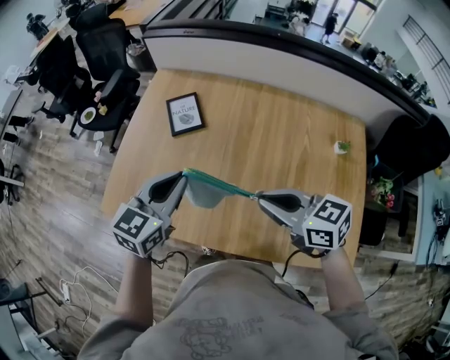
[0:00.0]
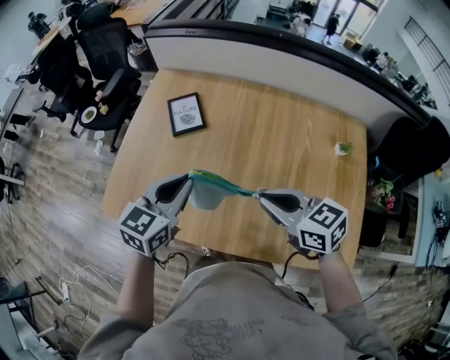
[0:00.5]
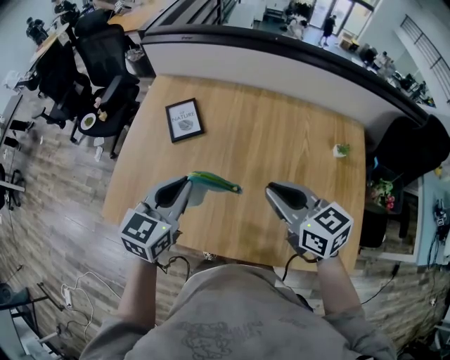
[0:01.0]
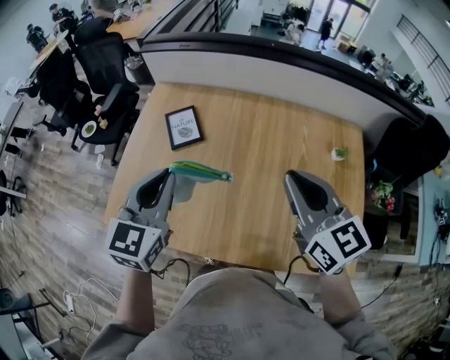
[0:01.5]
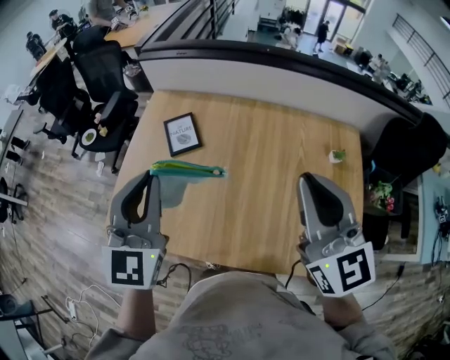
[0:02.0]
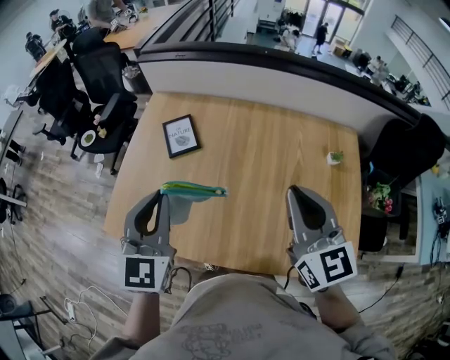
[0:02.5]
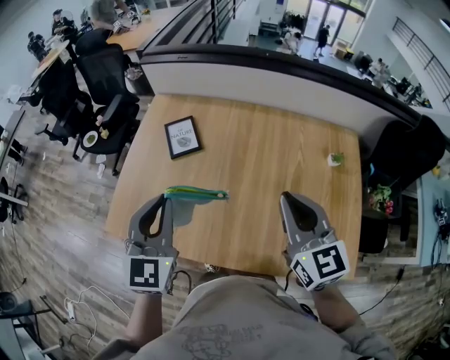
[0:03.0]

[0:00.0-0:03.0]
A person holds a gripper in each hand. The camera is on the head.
0:00.0 to 0:01.5: The right gripper goes approximately 15 cm upward and to the right, and turns by about 40 degrees; the left gripper is displaced upward by about 5 cm.
0:01.5 to 0:03.0: The right gripper reaches roughly 5 cm upward, then returns.

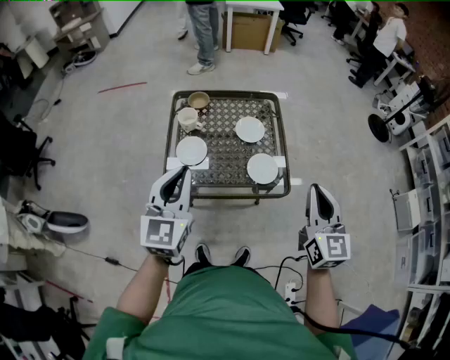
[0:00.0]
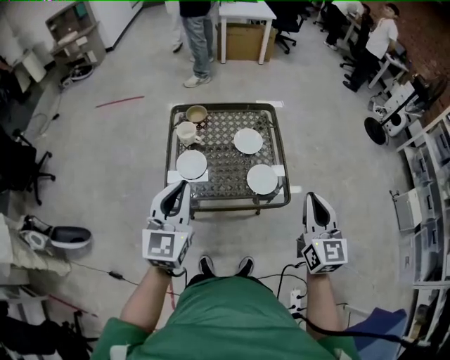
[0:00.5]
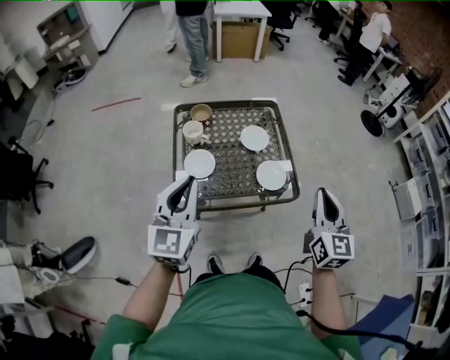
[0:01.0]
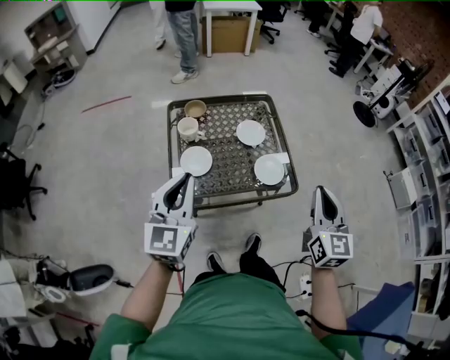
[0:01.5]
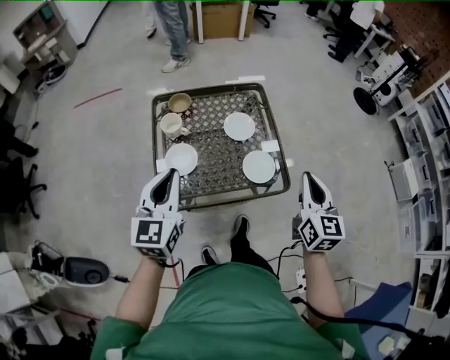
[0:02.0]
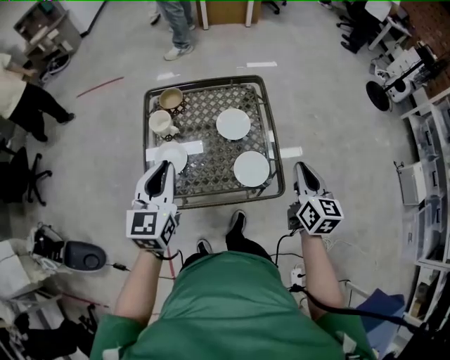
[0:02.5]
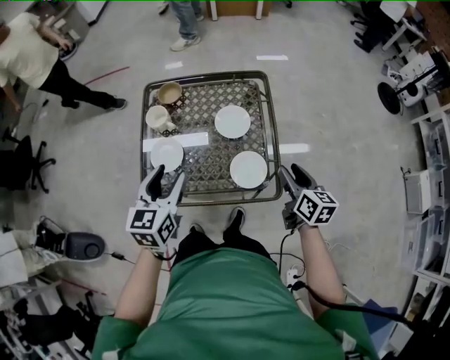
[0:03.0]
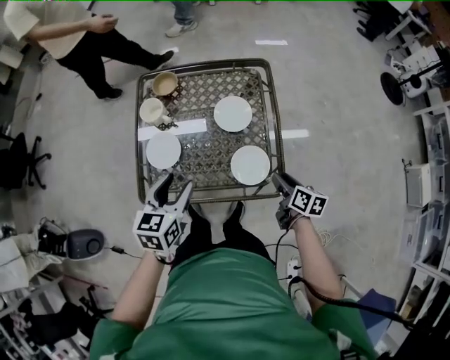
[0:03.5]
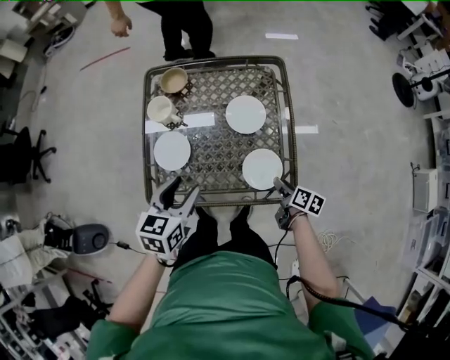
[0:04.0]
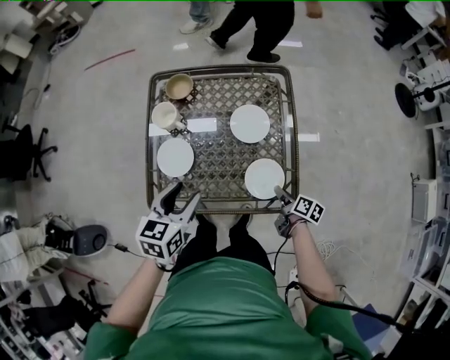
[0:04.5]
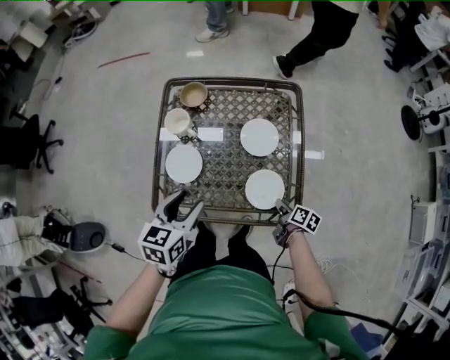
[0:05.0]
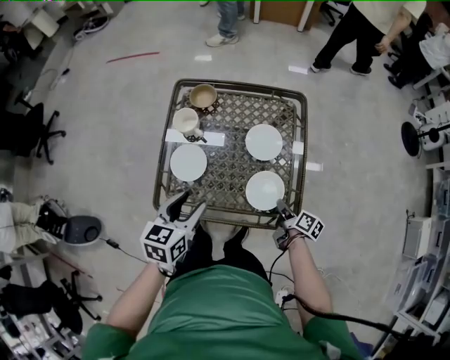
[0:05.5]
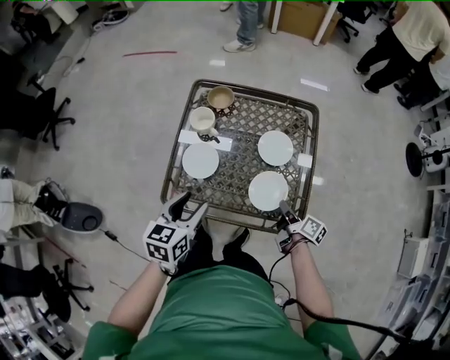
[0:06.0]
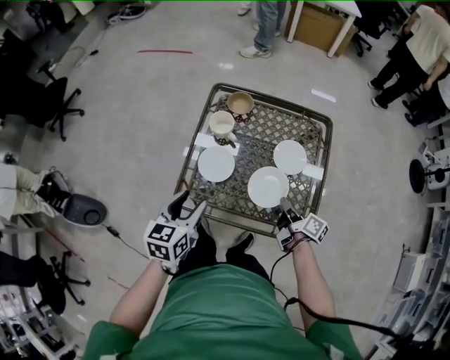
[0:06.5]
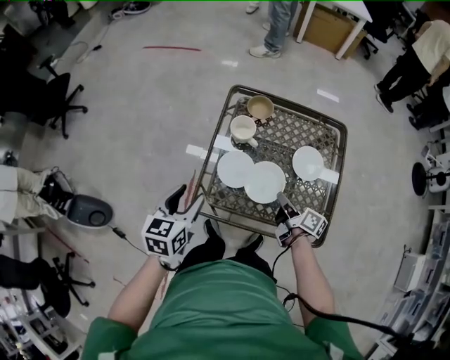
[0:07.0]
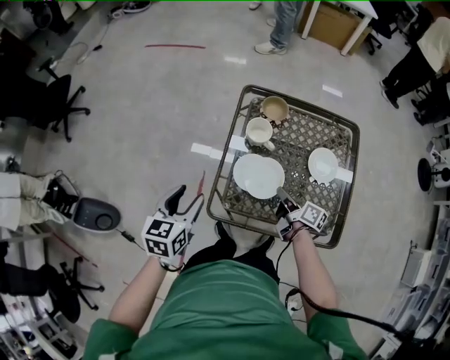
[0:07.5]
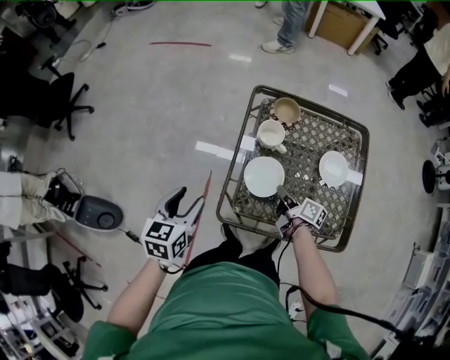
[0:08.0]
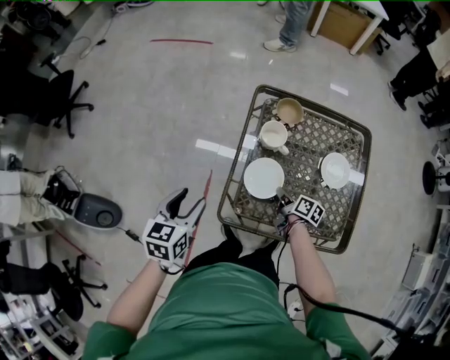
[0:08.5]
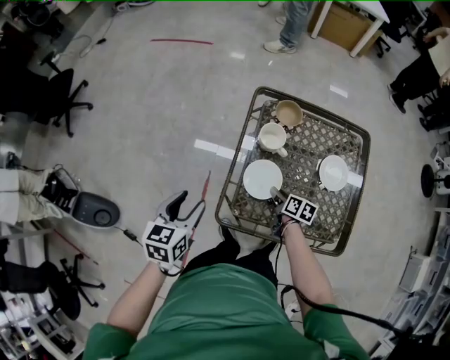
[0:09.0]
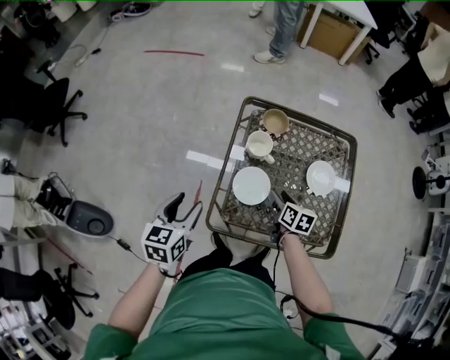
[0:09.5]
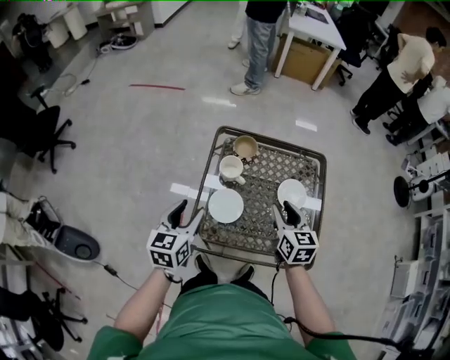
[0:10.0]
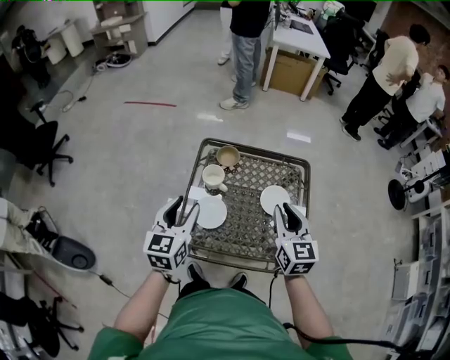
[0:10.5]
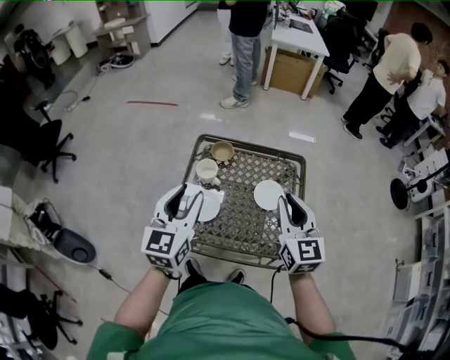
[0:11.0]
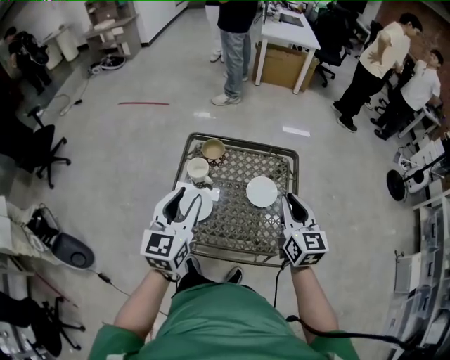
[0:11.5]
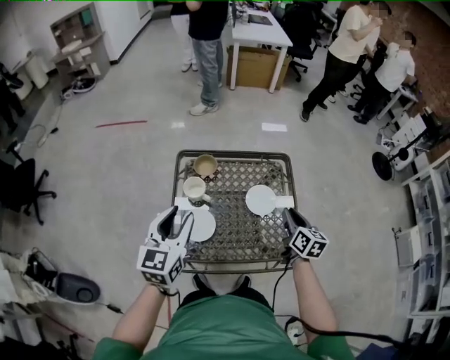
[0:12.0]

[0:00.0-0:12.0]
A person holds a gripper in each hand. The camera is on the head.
0:00.0 to 0:02.0: The right gripper shifts approximately 10 cm forward and downward. Meanwhile the left gripper moves forward, approximately 5 cm.
0:02.0 to 0:04.0: The left gripper shifts about 20 cm downward, to the right and forward, changes its angle by about 30 degrees, and opens up. The right gripper travels downward by about 35 cm, changes its angle by roughly 60 degrees, and opens.
0:04.0 to 0:06.0: The right gripper goes some 10 cm upward and to the left, and closes. The left gripper moves to the left, roughly 5 cm.
0:06.0 to 0:08.0: The left gripper heads to the left, covering about 25 cm; the right gripper travels to the left and forward by about 30 cm.
0:08.0 to 0:10.0: The left gripper heads to the right and upward, covering about 10 cm; the right gripper goes some 25 cm upward and to the right, rotates around the line of its fingers by roughly 60 degrees, counterclockwise from behind, and opens its fingers.
0:10.0 to 0:12.0: The left gripper travels upward and to the right by approximately 15 cm. Meanwhile the right gripper shifts approximately 20 cm to the right, and turns by approximately 30 degrees.

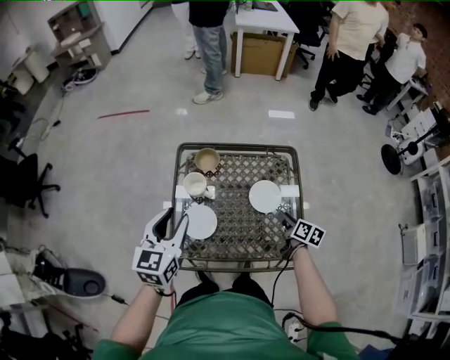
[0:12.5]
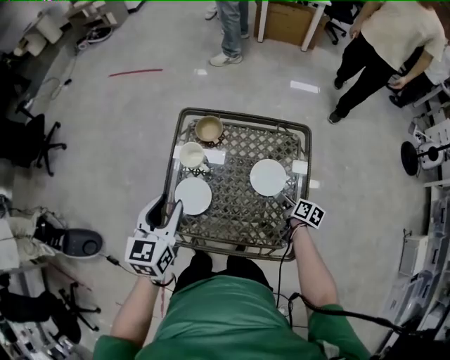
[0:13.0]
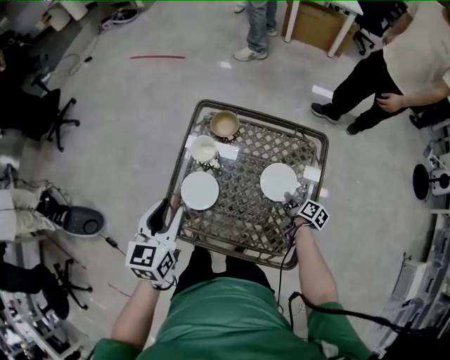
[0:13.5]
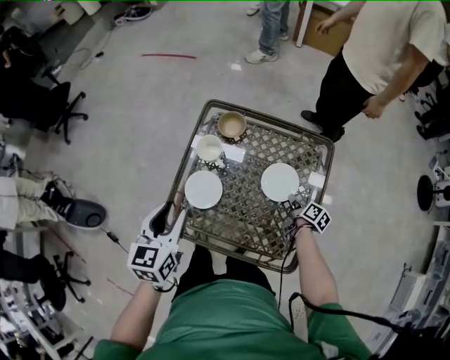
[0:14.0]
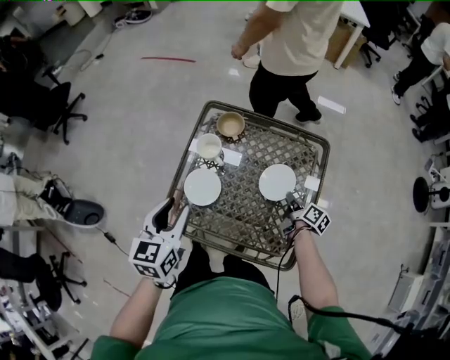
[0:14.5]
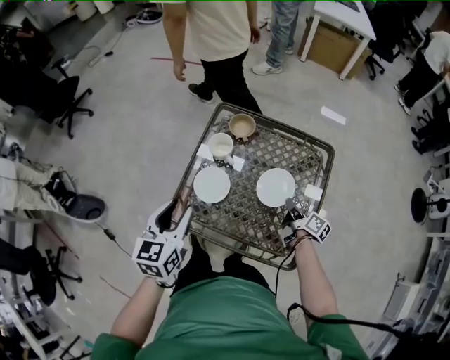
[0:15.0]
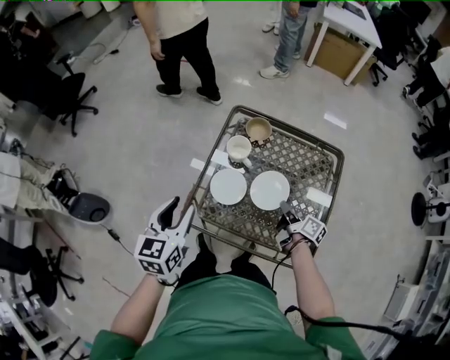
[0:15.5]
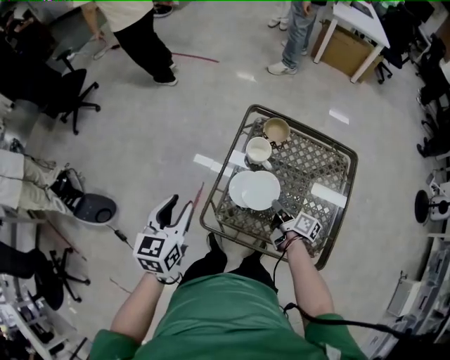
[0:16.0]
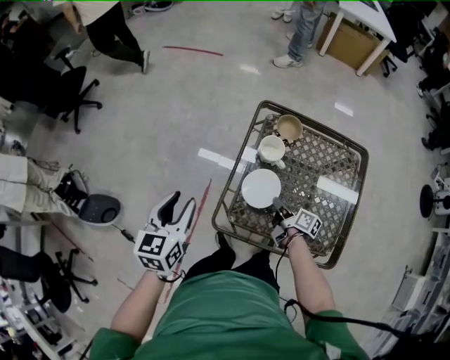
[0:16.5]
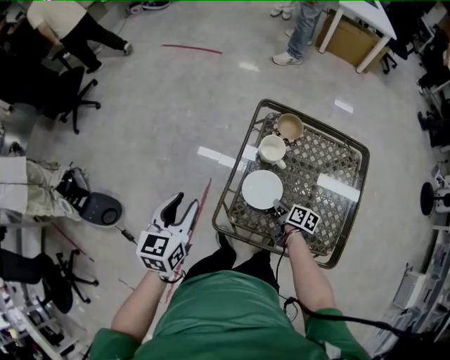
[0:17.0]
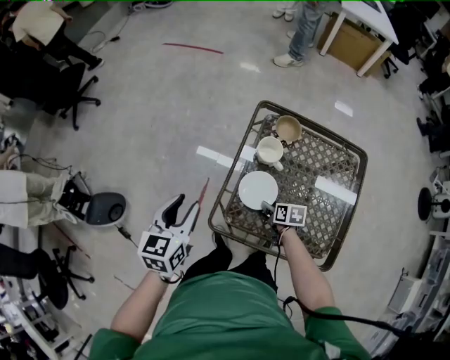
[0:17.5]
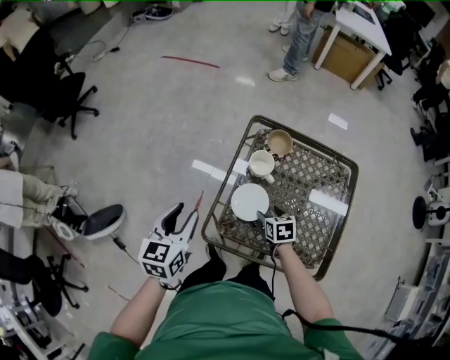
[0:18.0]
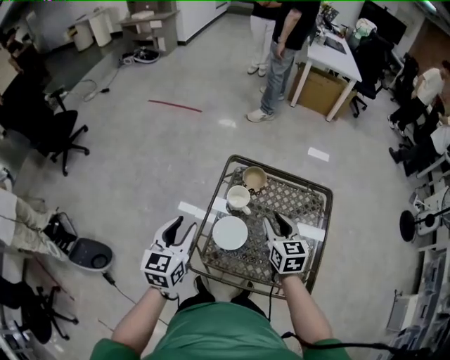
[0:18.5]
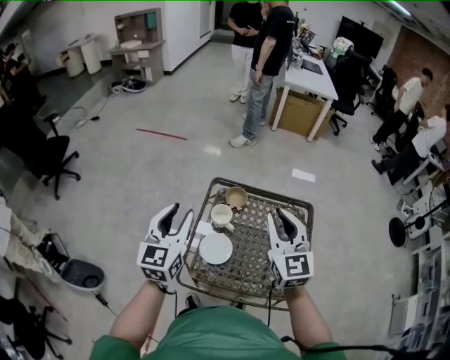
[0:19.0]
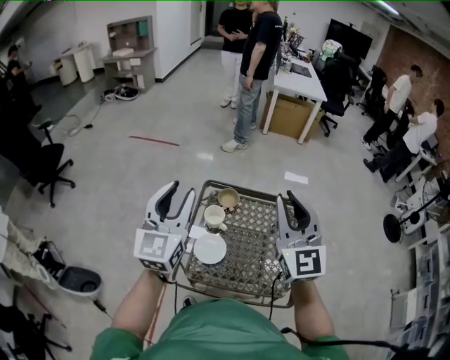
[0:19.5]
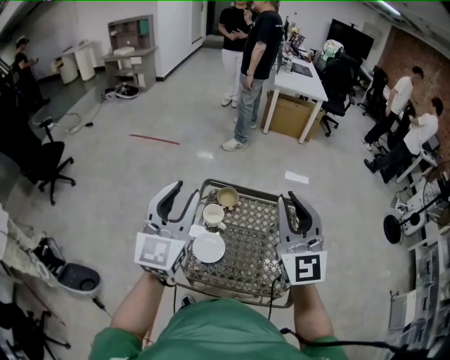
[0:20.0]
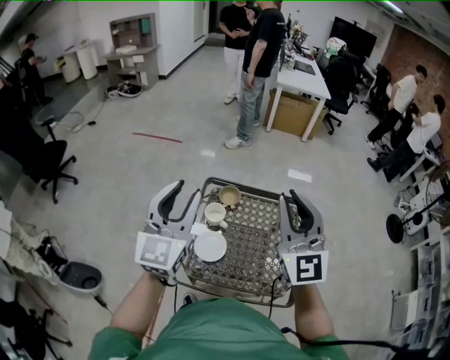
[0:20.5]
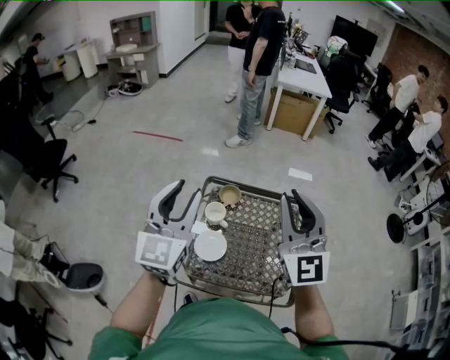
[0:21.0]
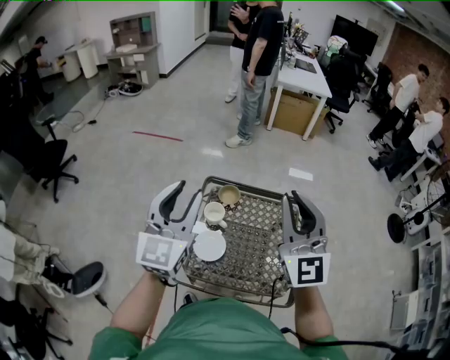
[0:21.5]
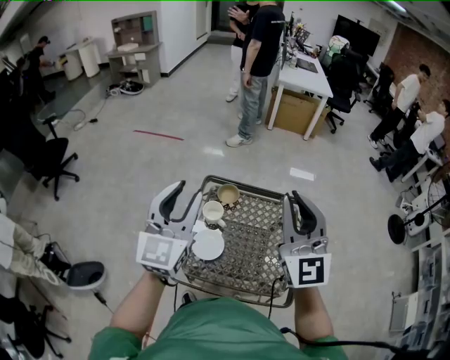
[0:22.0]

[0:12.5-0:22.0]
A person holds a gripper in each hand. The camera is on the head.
0:12.5 to 0:14.5: The right gripper moves downward and forward, some 10 cm, and closes. The left gripper moves backward, about 5 cm, and rotates some 20 degrees.
0:14.5 to 0:16.5: Both grippers travel together to the left, approximately 25 cm.
0:16.5 to 0:18.0: The right gripper twists some 50 degrees counterclockwise, seen from behind, and opens its fingers.
0:18.0 to 0:20.0: The left gripper is displaced upward and to the right by about 35 cm, and points its fingers some 40 degrees further upward, while the right gripper heads upward, covering about 50 cm, angles its fingers upward, by about 70 degrees, and closes its fingers.
0:20.0 to 0:22.0: There are only small adjustments of the grippers.

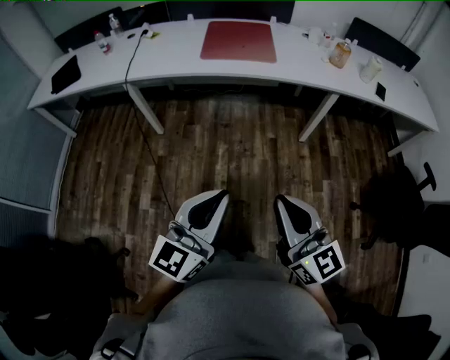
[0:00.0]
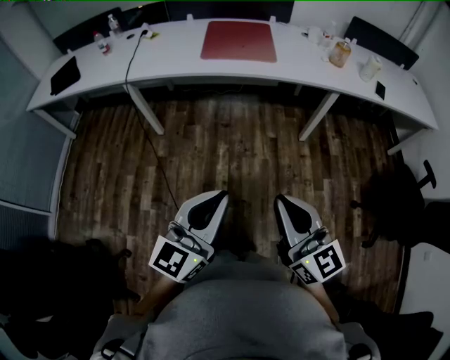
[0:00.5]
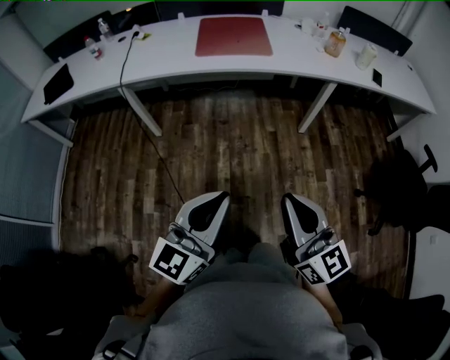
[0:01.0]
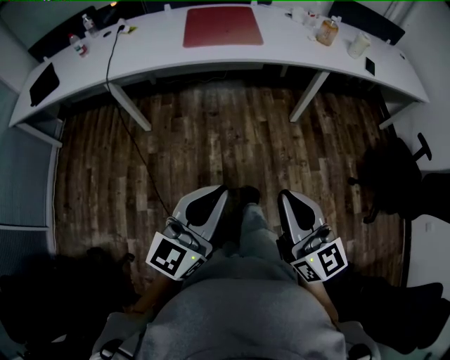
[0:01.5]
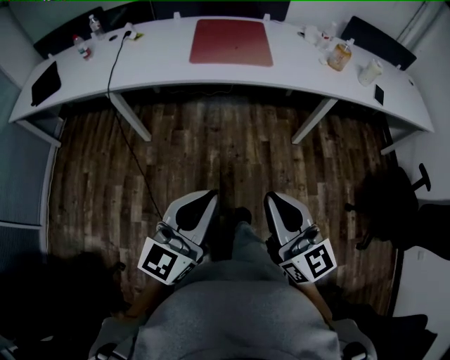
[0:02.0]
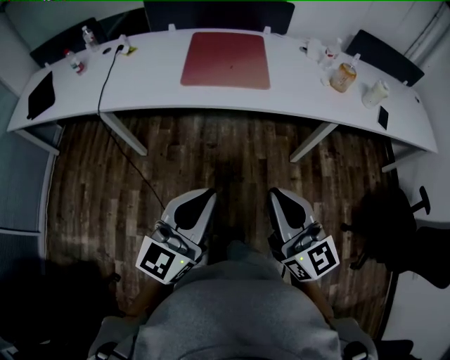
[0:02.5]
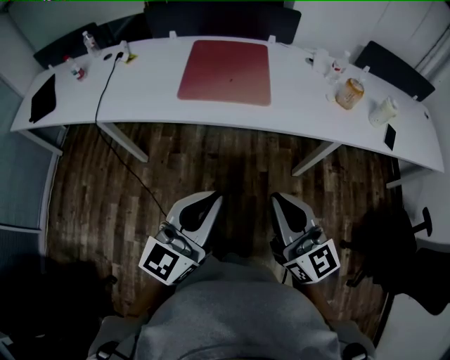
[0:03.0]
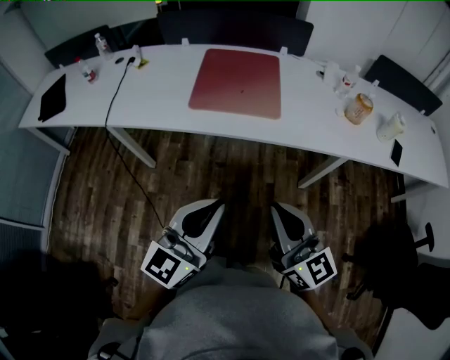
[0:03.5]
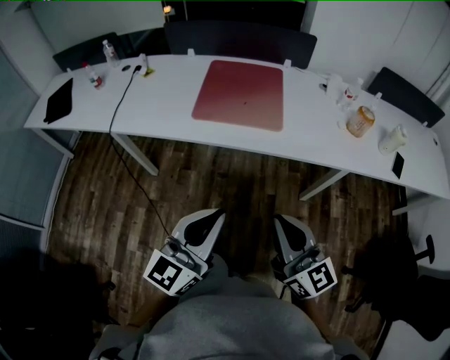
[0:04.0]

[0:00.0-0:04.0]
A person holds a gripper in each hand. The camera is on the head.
0:00.0 to 0:02.0: The grippers both shift forward by approximately 10 cm.
0:02.0 to 0:04.0: The left gripper heads forward and to the right, covering some 20 cm, while the right gripper moves forward, some 20 cm.
